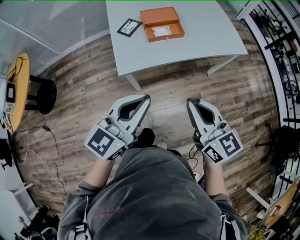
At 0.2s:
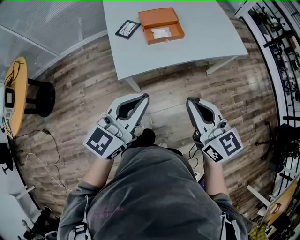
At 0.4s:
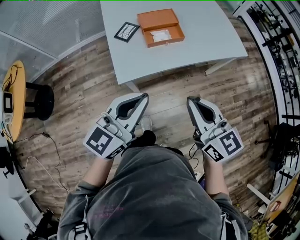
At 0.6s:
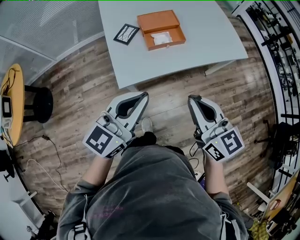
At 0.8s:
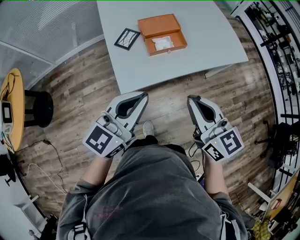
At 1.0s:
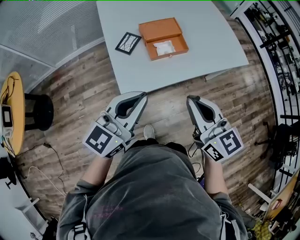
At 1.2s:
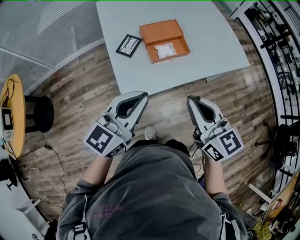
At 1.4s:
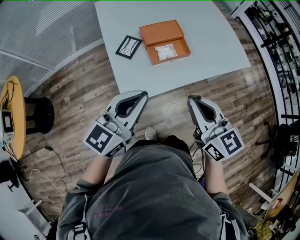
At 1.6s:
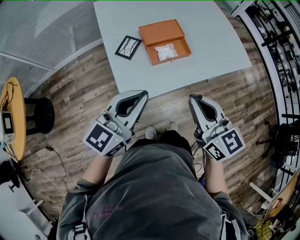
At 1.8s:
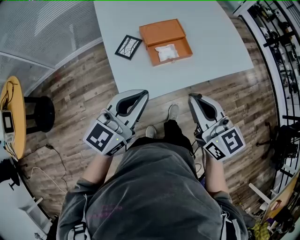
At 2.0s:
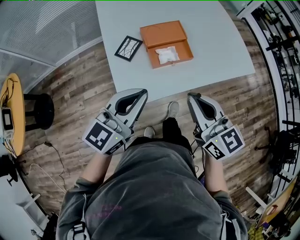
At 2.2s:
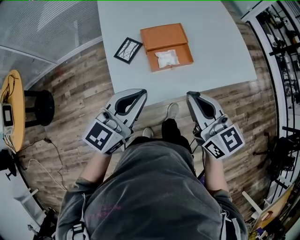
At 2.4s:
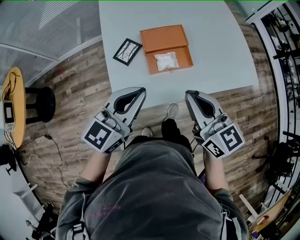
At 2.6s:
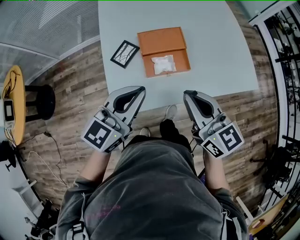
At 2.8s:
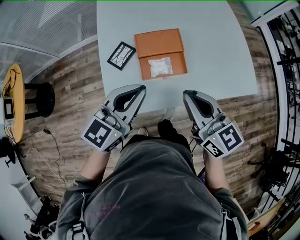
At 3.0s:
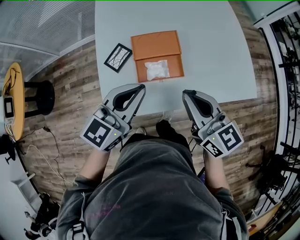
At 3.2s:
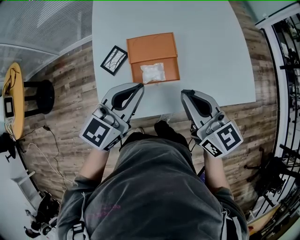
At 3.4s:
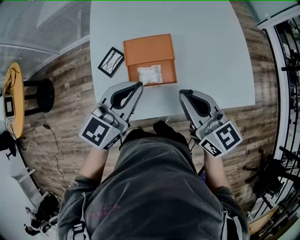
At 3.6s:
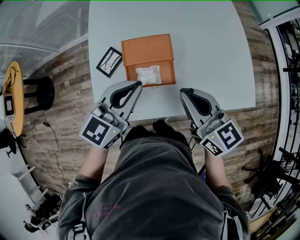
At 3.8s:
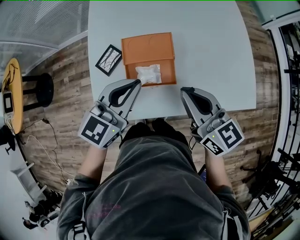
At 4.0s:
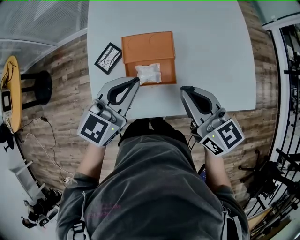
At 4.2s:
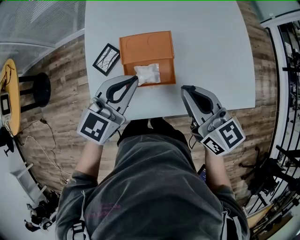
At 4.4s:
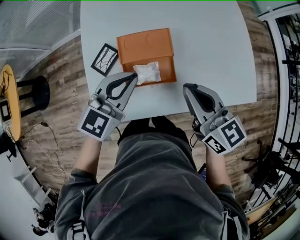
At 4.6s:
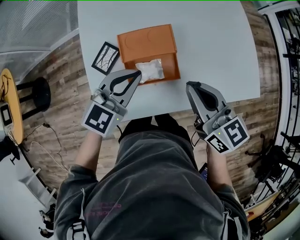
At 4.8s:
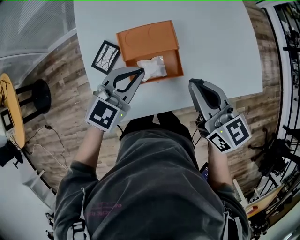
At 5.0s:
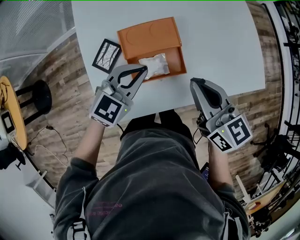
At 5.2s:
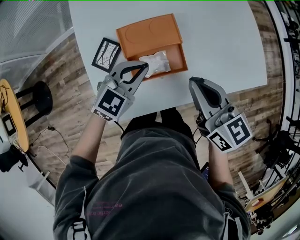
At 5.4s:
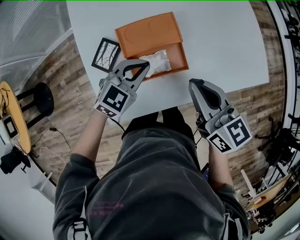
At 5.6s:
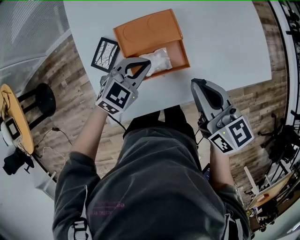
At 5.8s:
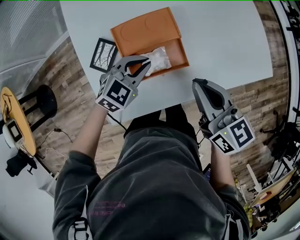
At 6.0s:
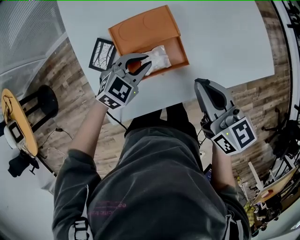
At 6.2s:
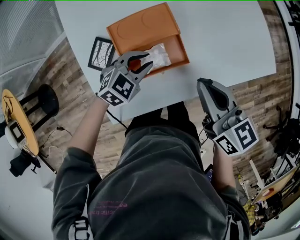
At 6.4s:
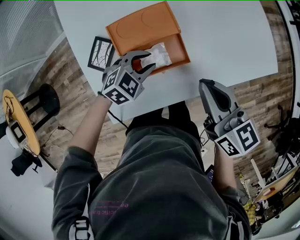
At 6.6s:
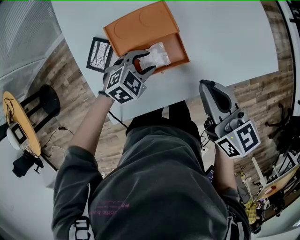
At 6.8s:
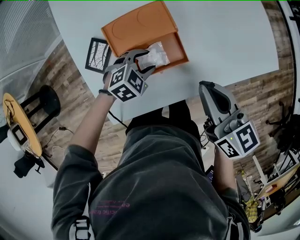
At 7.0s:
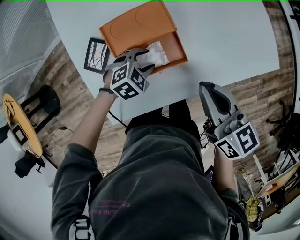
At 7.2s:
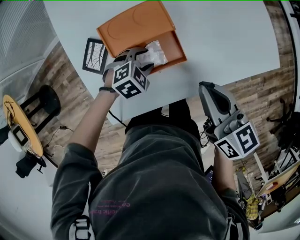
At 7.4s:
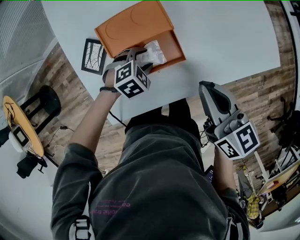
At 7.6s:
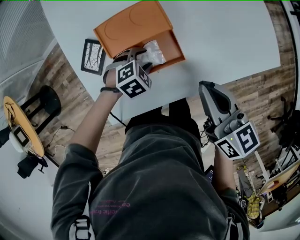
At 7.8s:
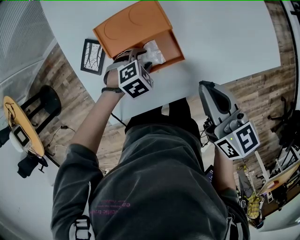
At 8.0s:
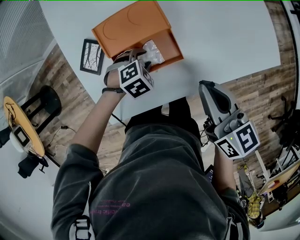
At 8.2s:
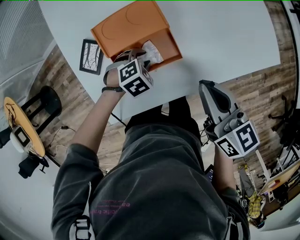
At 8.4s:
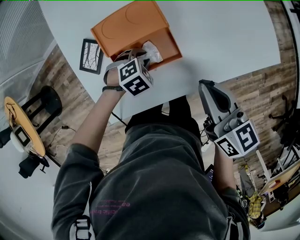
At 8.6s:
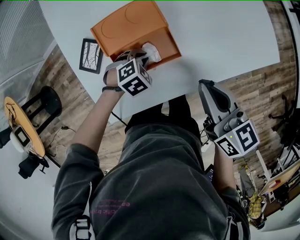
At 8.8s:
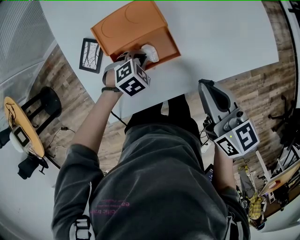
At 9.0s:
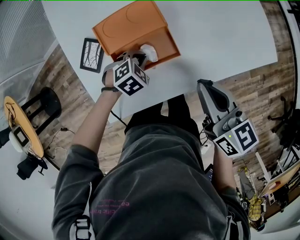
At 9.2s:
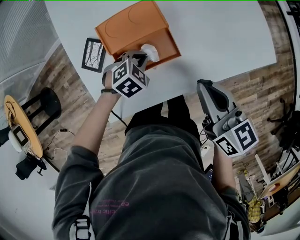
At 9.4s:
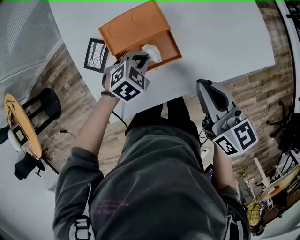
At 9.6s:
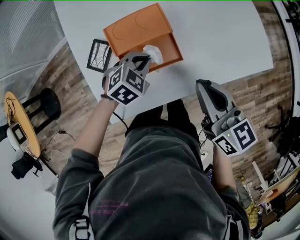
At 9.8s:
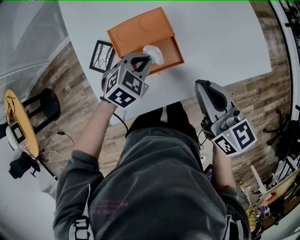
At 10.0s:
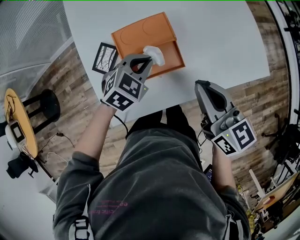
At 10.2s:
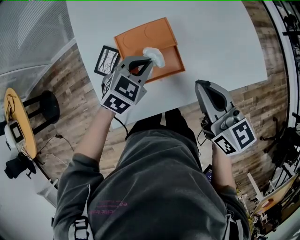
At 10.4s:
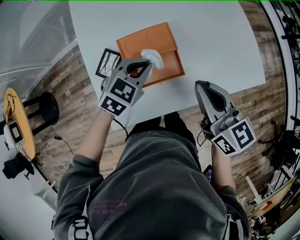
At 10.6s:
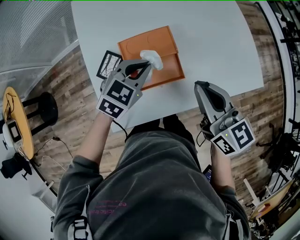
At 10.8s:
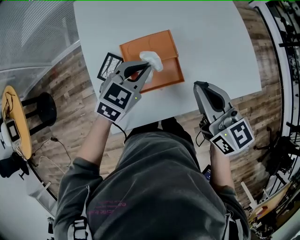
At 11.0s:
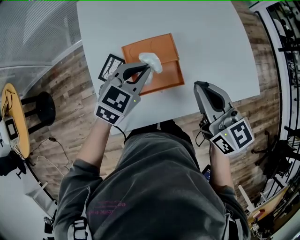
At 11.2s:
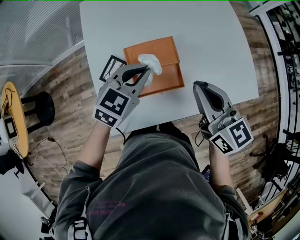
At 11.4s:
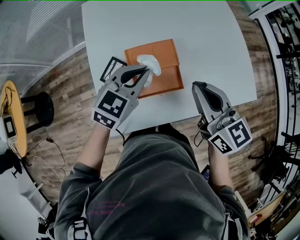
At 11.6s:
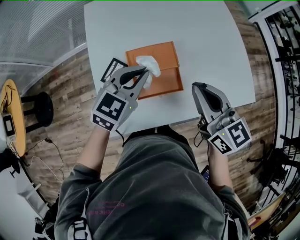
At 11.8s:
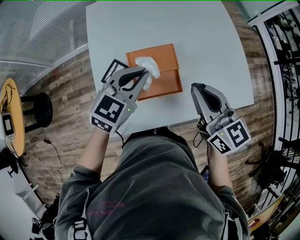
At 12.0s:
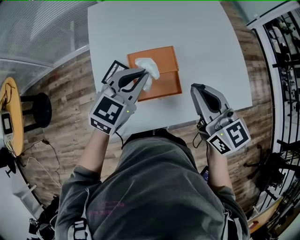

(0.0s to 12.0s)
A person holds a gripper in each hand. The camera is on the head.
0.0s - 1.6s: The grippers both shift forward and to the left by roughly 20 cm.
1.6s - 3.0s: The grippers both shift forward and to the right by roughly 20 cm.
3.0s - 4.4s: The right gripper shifts approximately 10 cm forward. The left gripper heads forward and downward, covering approximately 10 cm.
4.4s - 6.0s: The right gripper heads downward, covering about 5 cm. The left gripper moves downward, some 20 cm, and rotates some 30 degrees.
6.0s - 7.6s: The left gripper is displaced downward by some 10 cm, changes its angle by some 30 degrees, and opens up.
7.6s - 9.0s: The left gripper closes its fingers.
9.0s - 10.4s: The right gripper moves upward, some 10 cm; the left gripper shifts about 20 cm upward, and changes its angle by approximately 30 degrees.
10.4s - 12.0s: The right gripper shifts roughly 5 cm upward; the left gripper is displaced upward by roughly 15 cm, and turns by some 20 degrees.

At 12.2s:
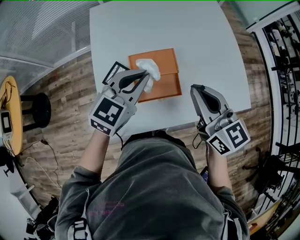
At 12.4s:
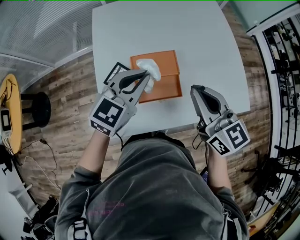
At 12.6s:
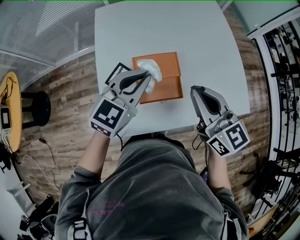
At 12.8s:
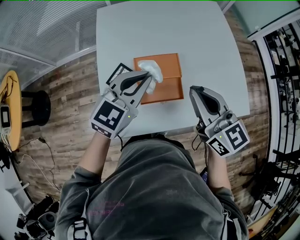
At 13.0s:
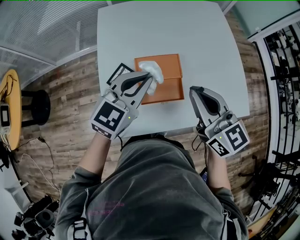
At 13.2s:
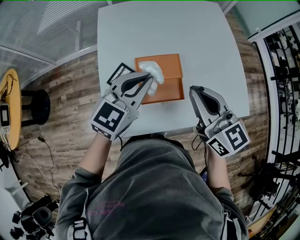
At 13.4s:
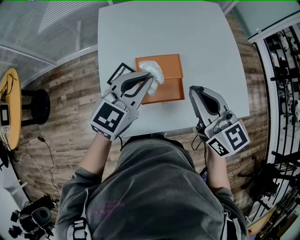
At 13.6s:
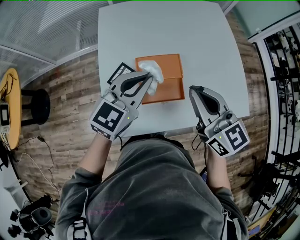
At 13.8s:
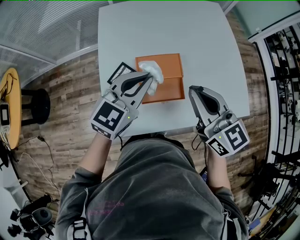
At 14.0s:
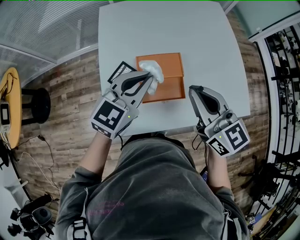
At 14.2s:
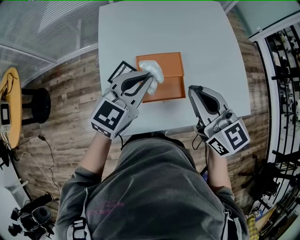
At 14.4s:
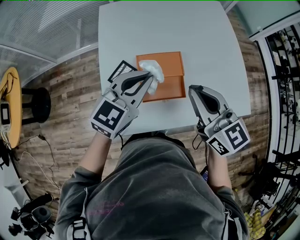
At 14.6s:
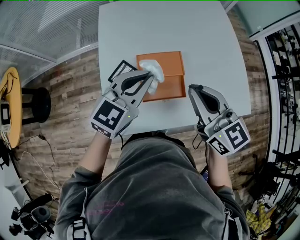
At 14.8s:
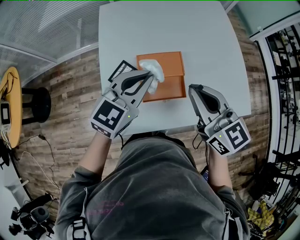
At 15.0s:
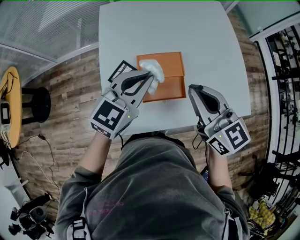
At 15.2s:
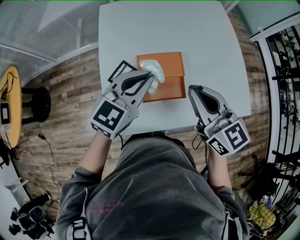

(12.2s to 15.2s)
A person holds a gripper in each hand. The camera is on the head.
12.2s - 13.8s: The grippers make only small movements.
13.8s - 15.2s: Both grippers stay about where they are.

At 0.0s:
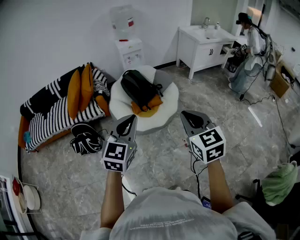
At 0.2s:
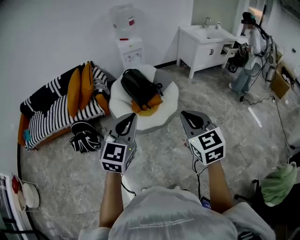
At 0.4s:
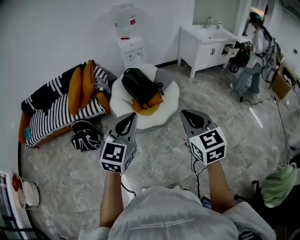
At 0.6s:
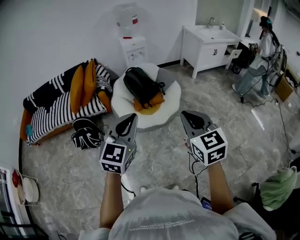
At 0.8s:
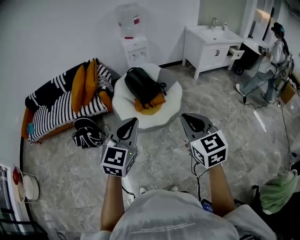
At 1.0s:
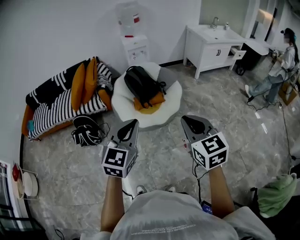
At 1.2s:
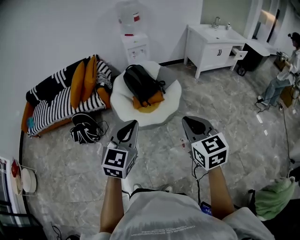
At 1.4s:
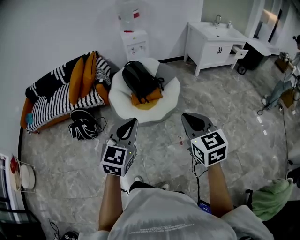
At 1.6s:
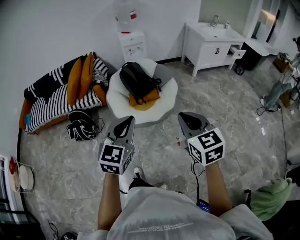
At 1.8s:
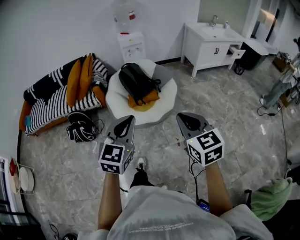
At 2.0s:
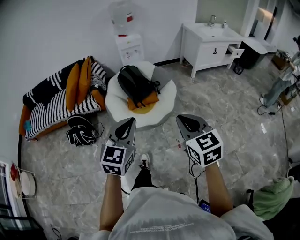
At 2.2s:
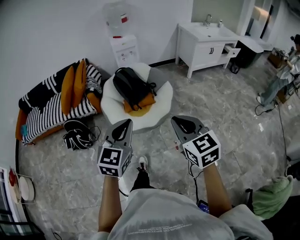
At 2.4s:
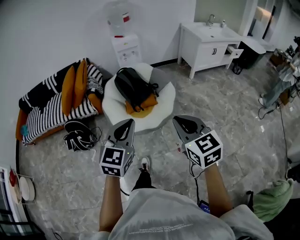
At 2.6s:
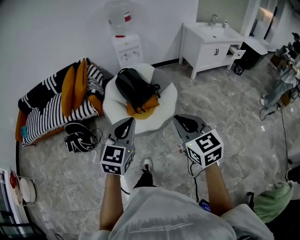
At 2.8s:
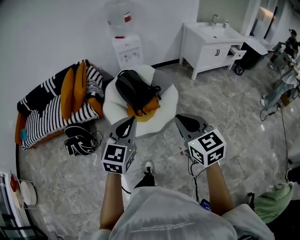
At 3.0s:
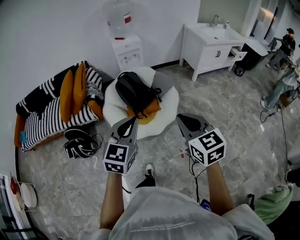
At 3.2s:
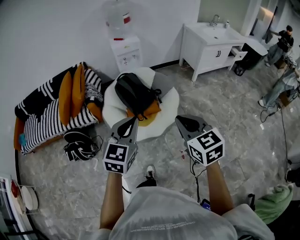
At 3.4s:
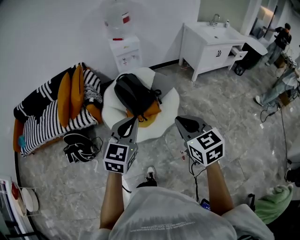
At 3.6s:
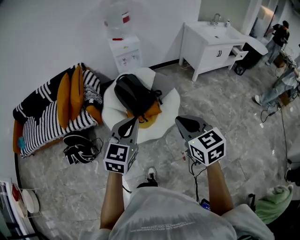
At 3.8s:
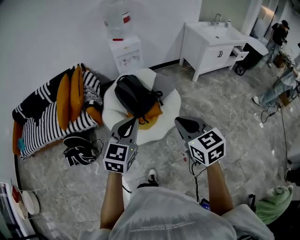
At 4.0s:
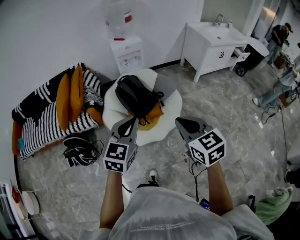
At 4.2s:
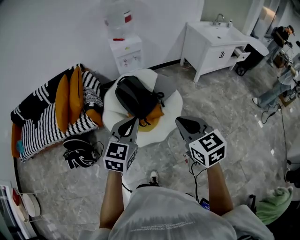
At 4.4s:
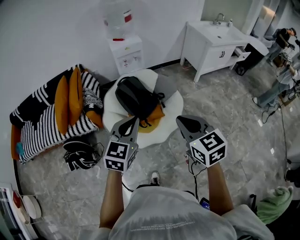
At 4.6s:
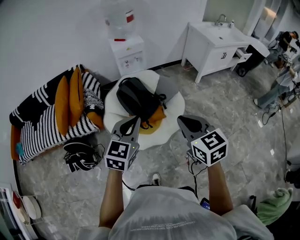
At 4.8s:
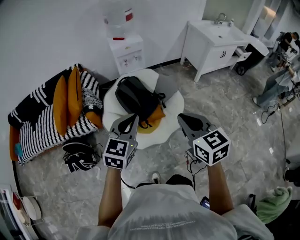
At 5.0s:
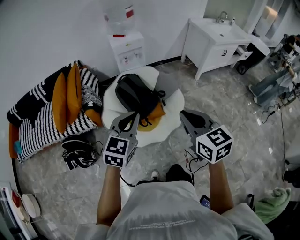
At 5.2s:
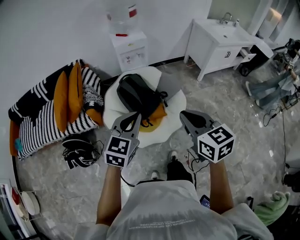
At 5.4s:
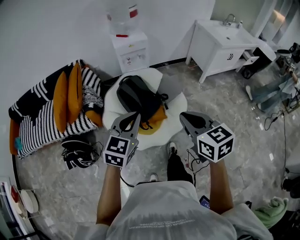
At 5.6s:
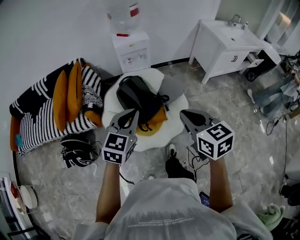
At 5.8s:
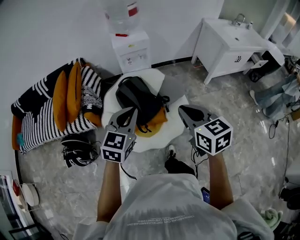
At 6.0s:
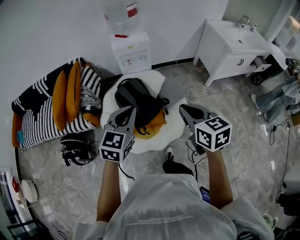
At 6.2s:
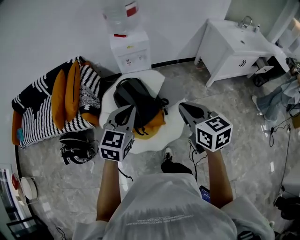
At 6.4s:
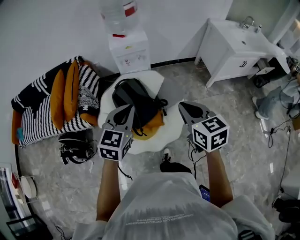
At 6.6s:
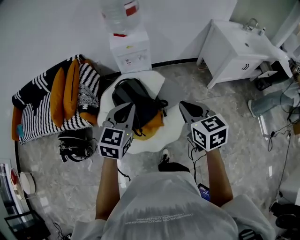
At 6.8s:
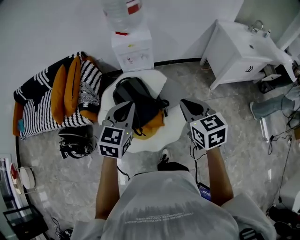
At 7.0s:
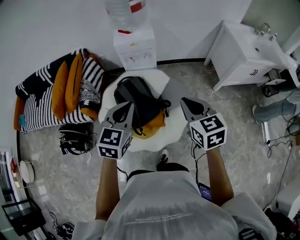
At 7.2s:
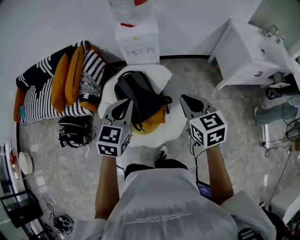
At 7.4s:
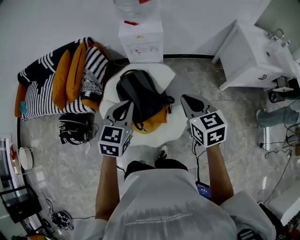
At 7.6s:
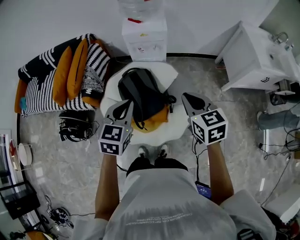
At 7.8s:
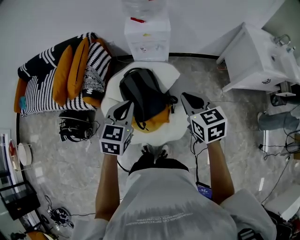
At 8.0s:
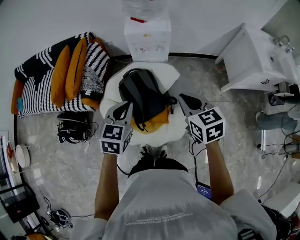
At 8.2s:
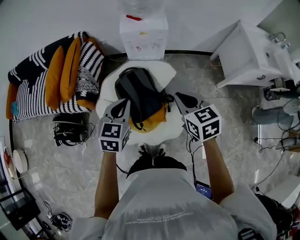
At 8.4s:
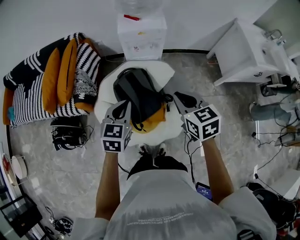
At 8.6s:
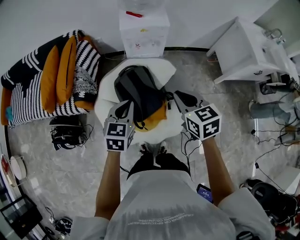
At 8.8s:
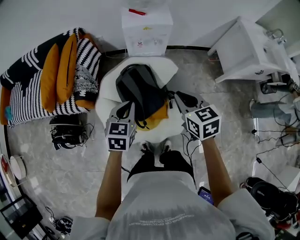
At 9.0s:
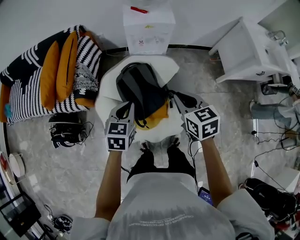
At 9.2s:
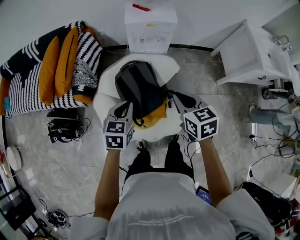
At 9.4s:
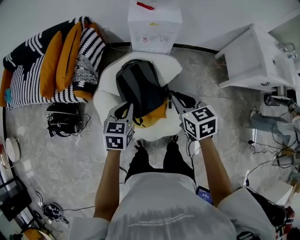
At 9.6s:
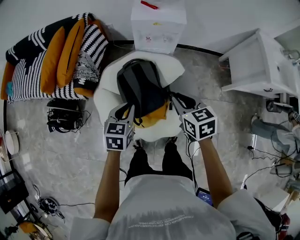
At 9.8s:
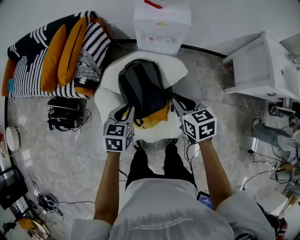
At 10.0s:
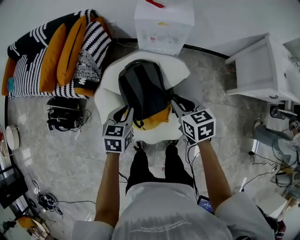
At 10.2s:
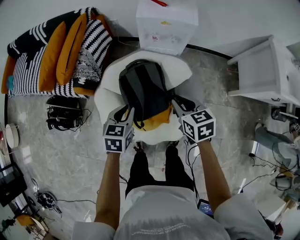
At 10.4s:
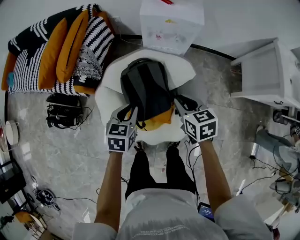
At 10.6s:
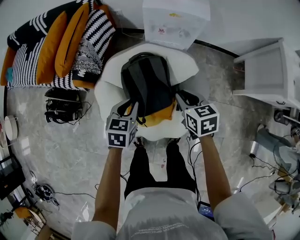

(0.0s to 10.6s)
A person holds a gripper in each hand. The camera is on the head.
0.0s - 1.6s: Both grippers move to the right, some 10 cm.
1.6s - 3.0s: Both grippers travel together forward, approximately 20 cm.
3.0s - 4.6s: The left gripper goes about 20 cm forward, while the right gripper moves forward and to the left, about 20 cm.
4.6s - 6.0s: The left gripper heads forward, covering some 20 cm; the right gripper goes roughly 25 cm forward and to the right.
6.0s - 7.6s: The left gripper shifts roughly 15 cm forward and downward. Meanwhile the right gripper is displaced forward by some 20 cm.
7.6s - 9.0s: The right gripper travels to the left and downward by about 15 cm. Meanwhile the left gripper goes approximately 15 cm downward, to the left and forward.
9.0s - 10.6s: The left gripper goes about 10 cm downward. The right gripper travels downward and forward by about 20 cm.
